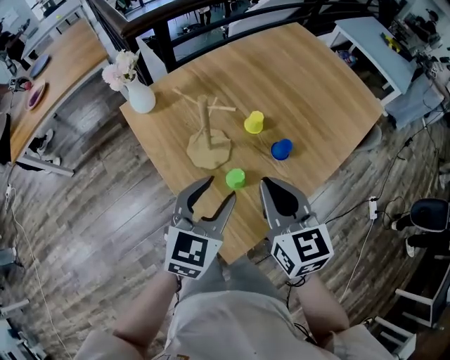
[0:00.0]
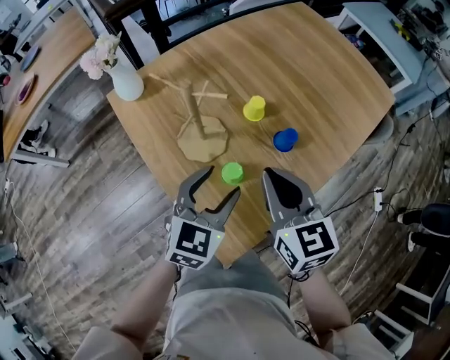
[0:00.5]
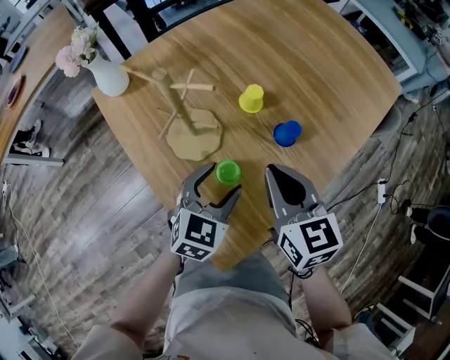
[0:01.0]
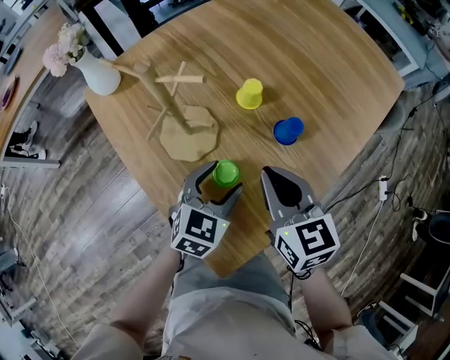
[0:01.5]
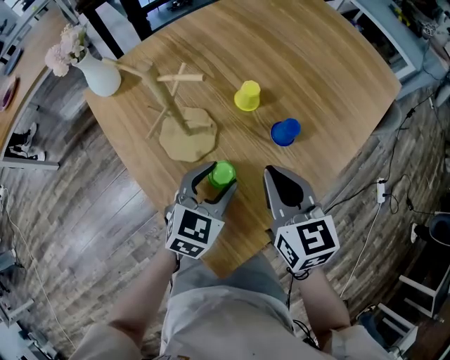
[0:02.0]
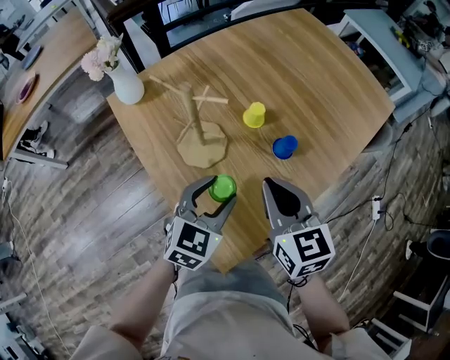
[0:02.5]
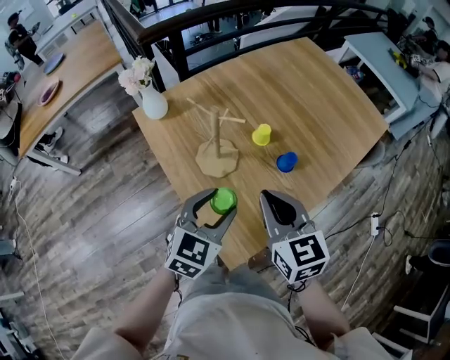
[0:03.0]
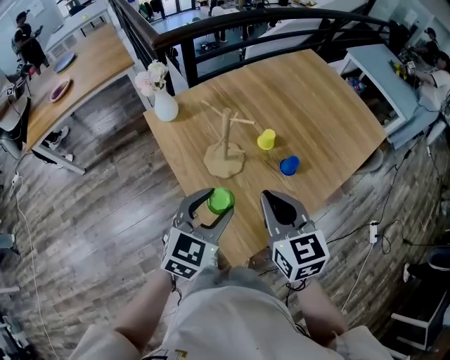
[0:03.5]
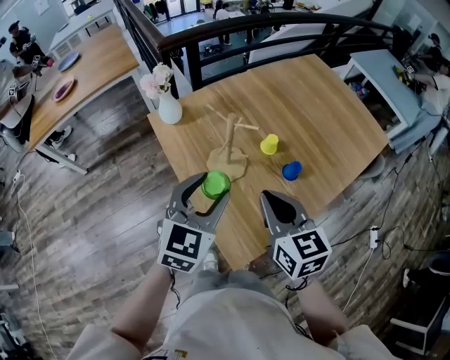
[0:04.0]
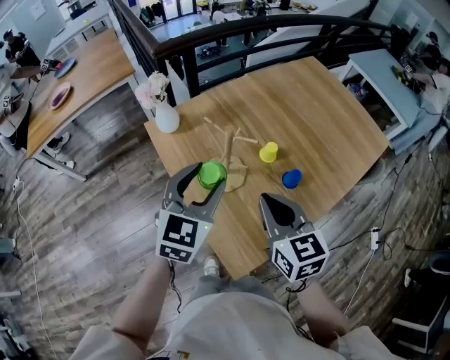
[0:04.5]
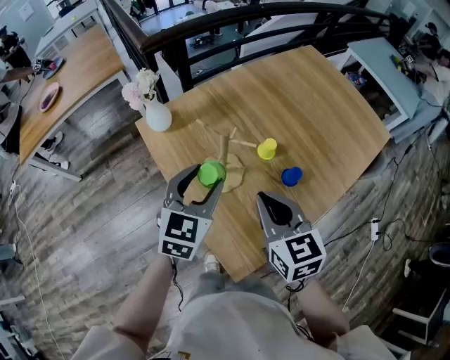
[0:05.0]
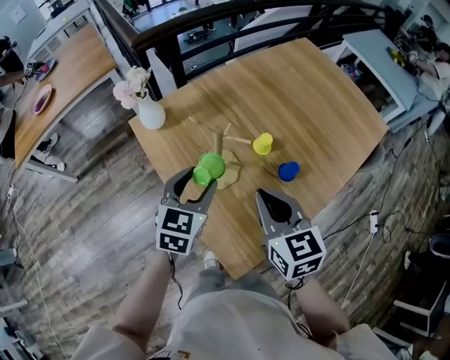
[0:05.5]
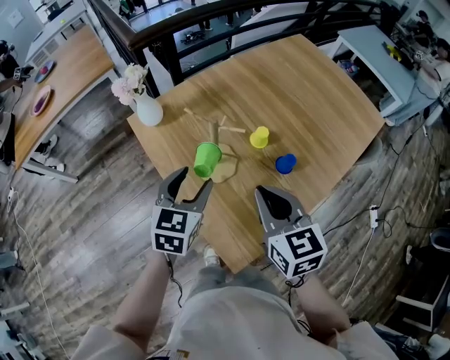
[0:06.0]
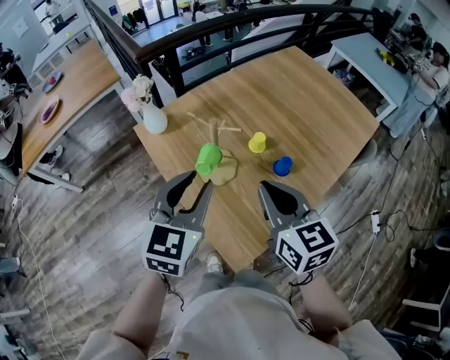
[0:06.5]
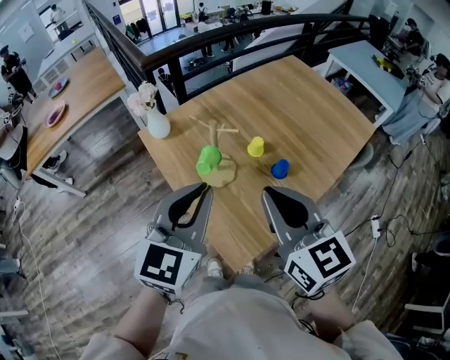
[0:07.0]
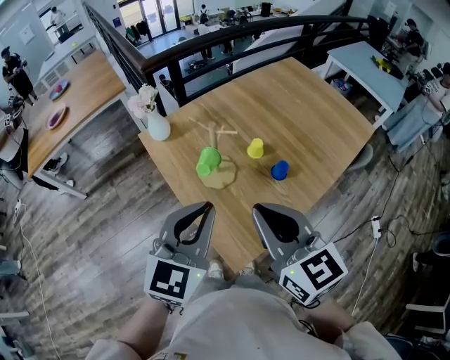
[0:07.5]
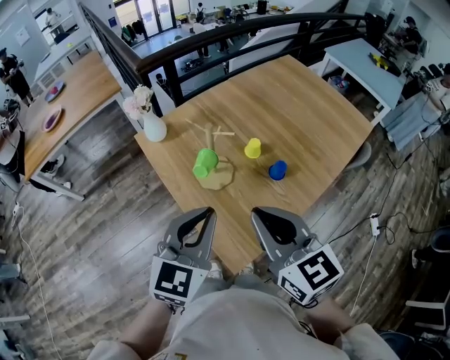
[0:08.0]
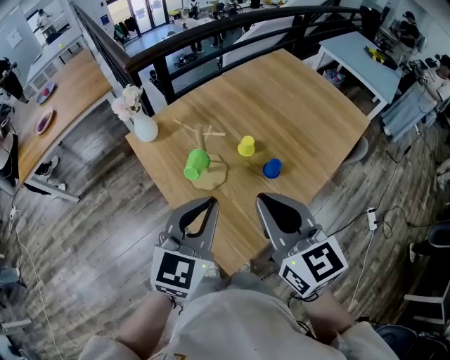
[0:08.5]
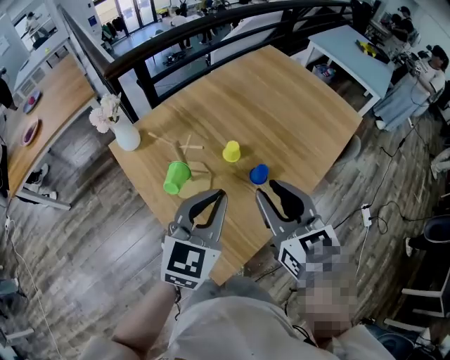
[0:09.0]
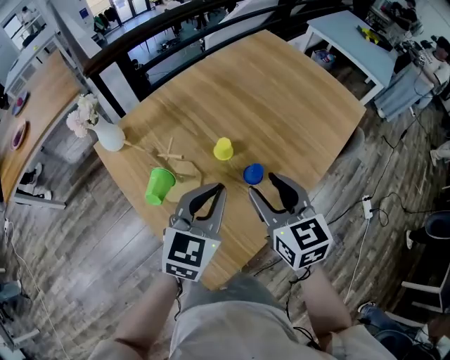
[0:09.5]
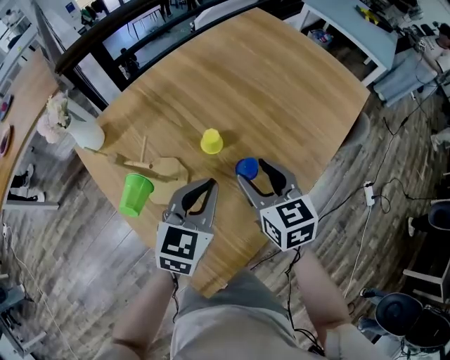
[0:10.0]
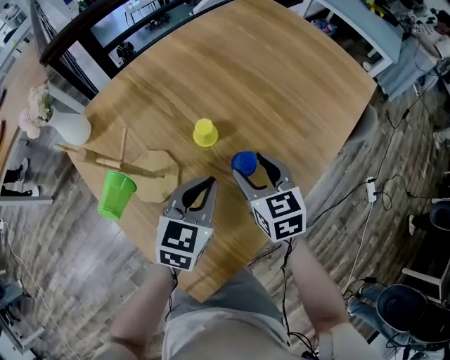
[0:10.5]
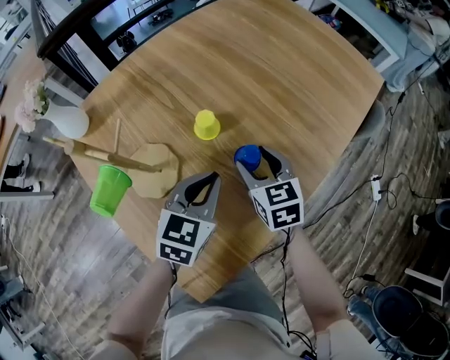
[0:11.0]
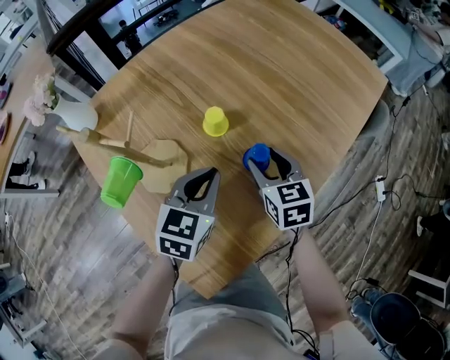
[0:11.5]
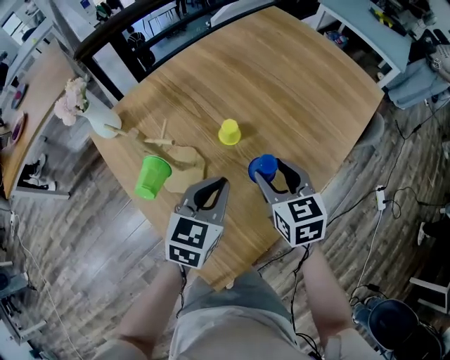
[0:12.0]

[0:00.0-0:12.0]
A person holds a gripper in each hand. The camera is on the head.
0:00.0 to 0:02.0: Both grippers travel together downward, roughly 20 cm.
0:02.0 to 0:04.0: The right gripper is displaced upward, to the left and backward by roughly 25 cm; the left gripper moves upward and to the left, about 30 cm.
0:04.0 to 0:06.0: The left gripper shifts approximately 10 cm downward and forward. Meanwhile the right gripper ends up roughly 5 cm from where it was.
0:06.0 to 0:08.0: The left gripper moves backward and upward, approximately 20 cm, and closes its fingers. Meanwhile the right gripper shifts roughly 15 cm upward and backward.
0:08.0 to 0:10.0: The two grippers go roughly 35 cm forward, downward and to the right. The right gripper opens up.
0:10.0 to 0:12.0: The left gripper reaches some 10 cm downward, then returns; the right gripper travels downward and back again, about 15 cm each way.

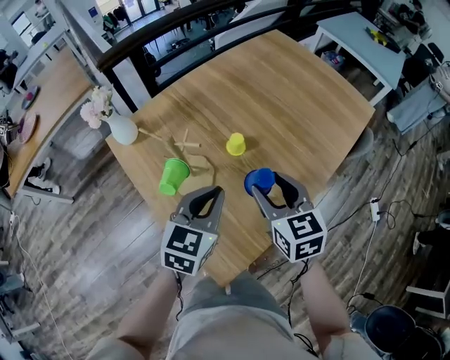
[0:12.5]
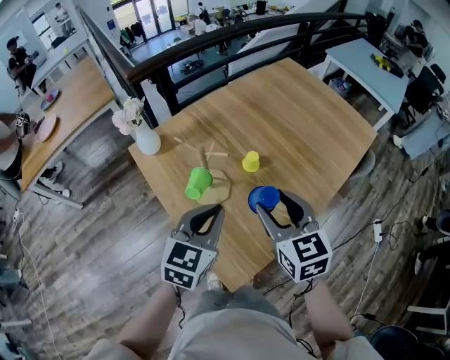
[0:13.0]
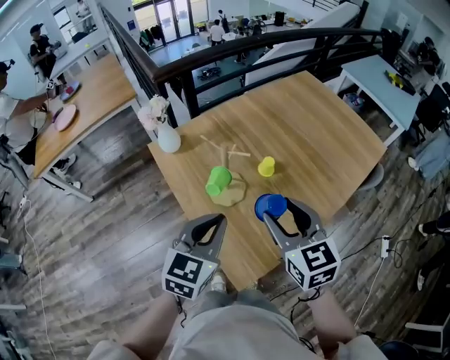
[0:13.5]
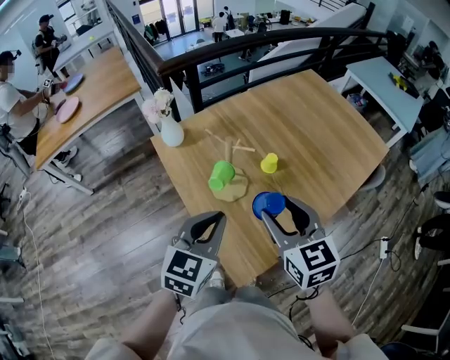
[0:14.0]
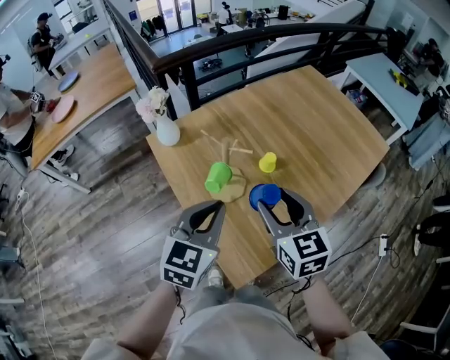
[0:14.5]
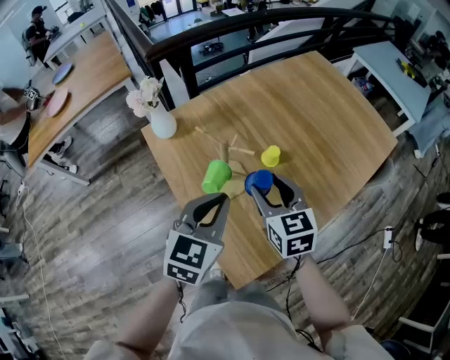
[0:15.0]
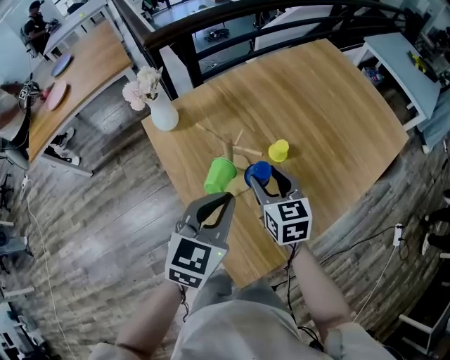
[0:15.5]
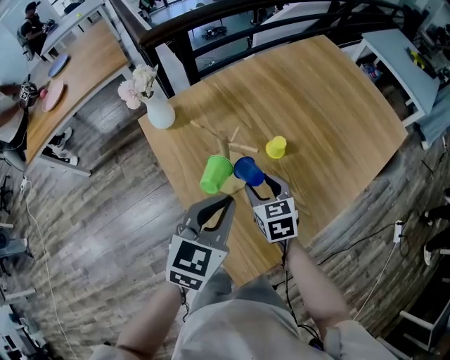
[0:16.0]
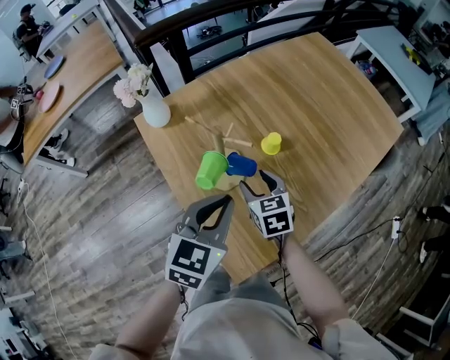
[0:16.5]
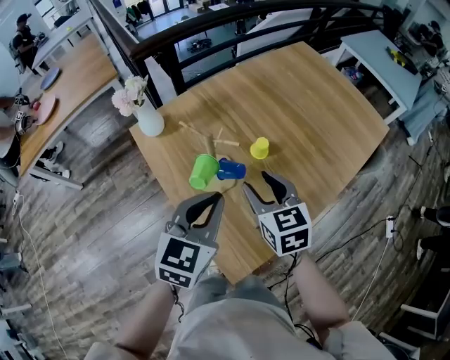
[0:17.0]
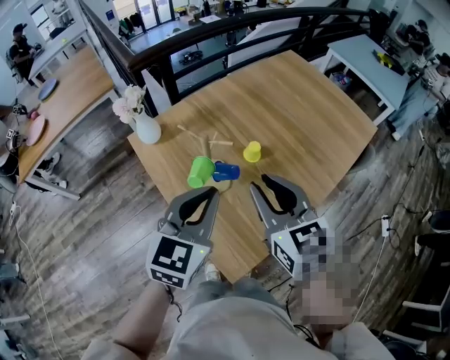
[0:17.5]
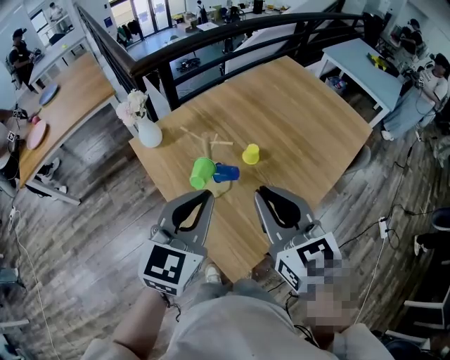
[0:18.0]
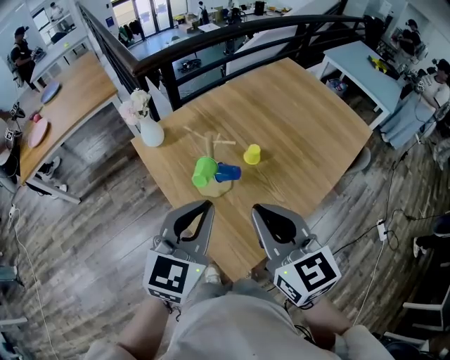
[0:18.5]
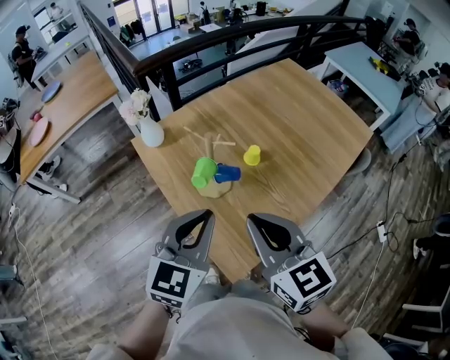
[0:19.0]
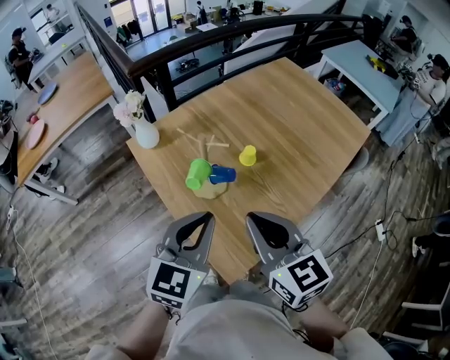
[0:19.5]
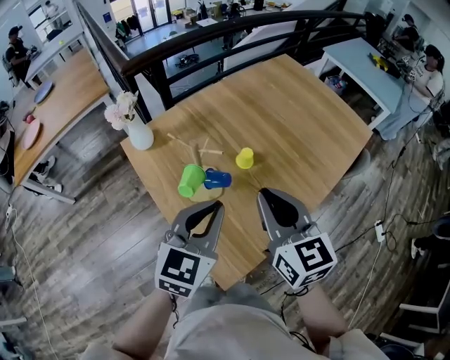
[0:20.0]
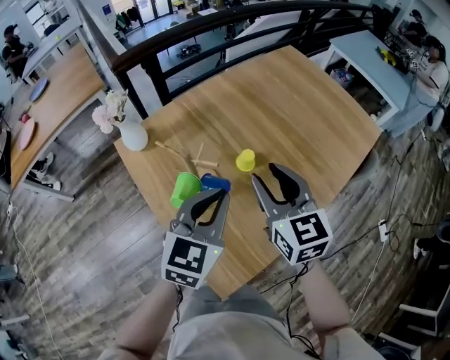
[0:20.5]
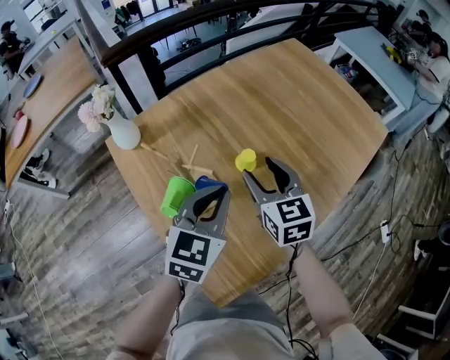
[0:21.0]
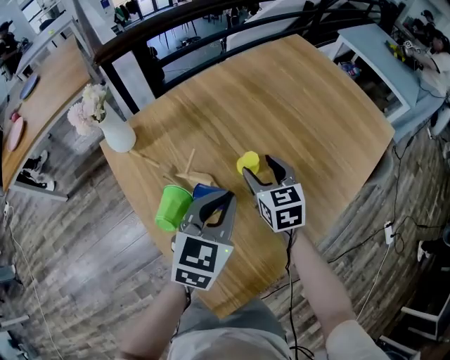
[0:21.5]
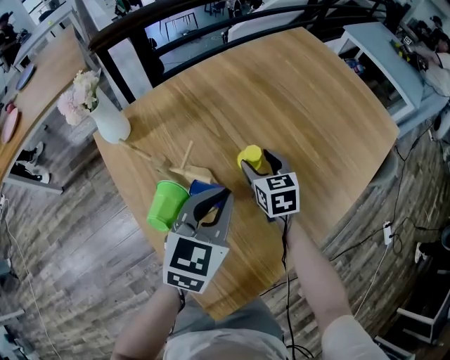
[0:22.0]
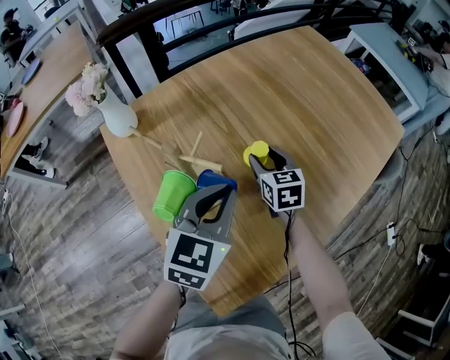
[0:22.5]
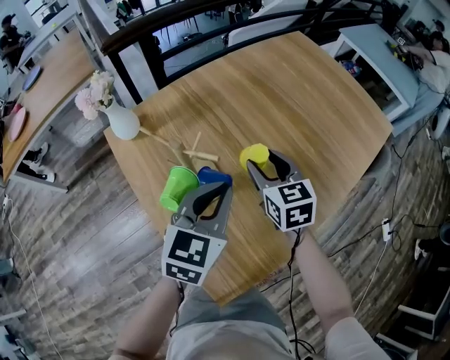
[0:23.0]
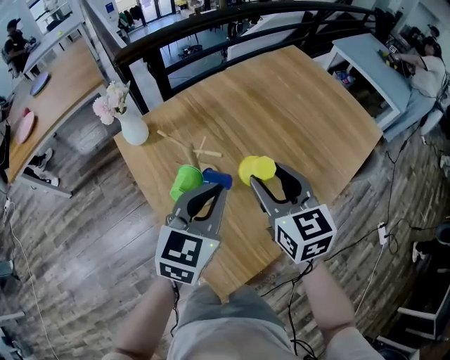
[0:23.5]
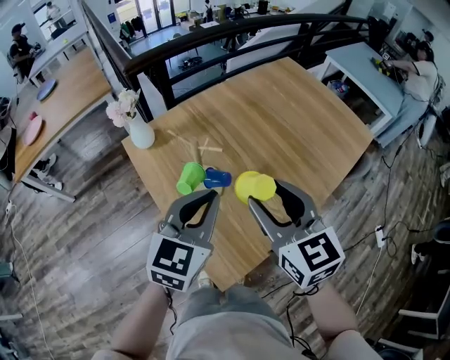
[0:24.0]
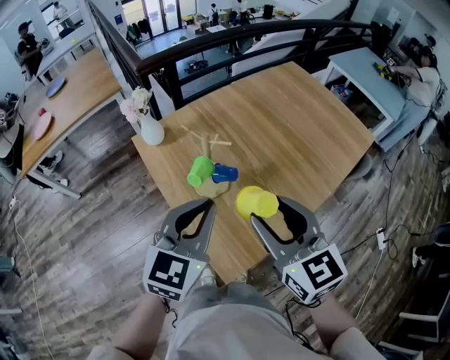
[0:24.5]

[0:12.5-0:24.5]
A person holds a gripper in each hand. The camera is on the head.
0:12.5 to 0:14.5: Both grippers move to the left, upward and backward, some 15 cm.
0:14.5 to 0:16.5: The left gripper is displaced downward by some 5 cm. Meanwhile the right gripper heads downward and forward, covering some 20 cm.
0:16.5 to 0:18.5: The right gripper travels upward and backward by roughly 30 cm, changes its angle by approximately 30 degrees, and closes up. Meanwhile the left gripper shifts about 15 cm upward and backward.
0:18.5 to 0:20.5: The grippers both shift forward, downward and to the right by roughly 20 cm. The right gripper opens up.
0:20.5 to 0:22.5: The right gripper shifts about 30 cm downward and forward; the left gripper heads downward and forward, covering roughly 15 cm.
0:22.5 to 0:24.5: The right gripper goes about 50 cm upward and backward, and rotates roughly 20 degrees. Meanwhile the left gripper moves upward and backward, roughly 30 cm.

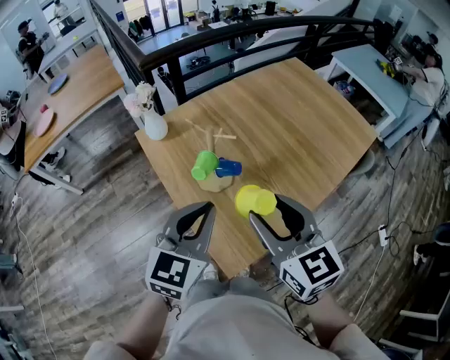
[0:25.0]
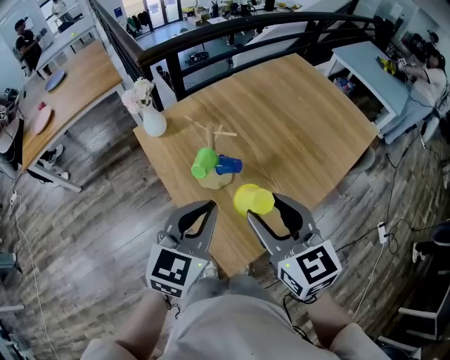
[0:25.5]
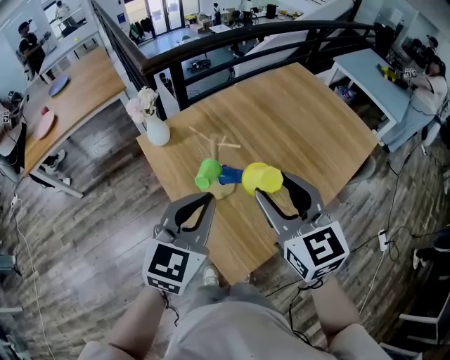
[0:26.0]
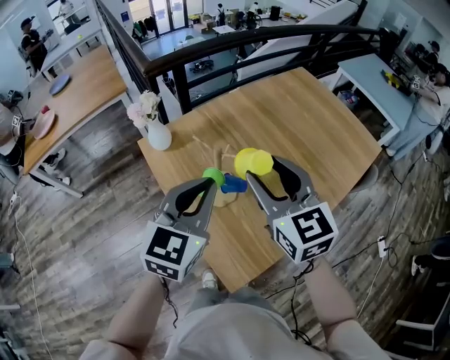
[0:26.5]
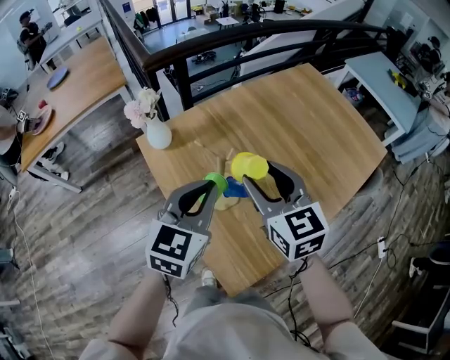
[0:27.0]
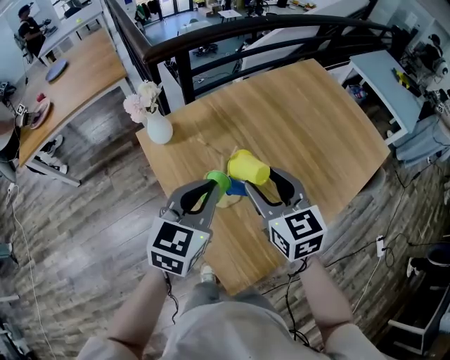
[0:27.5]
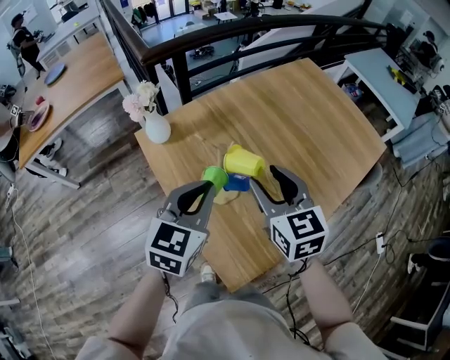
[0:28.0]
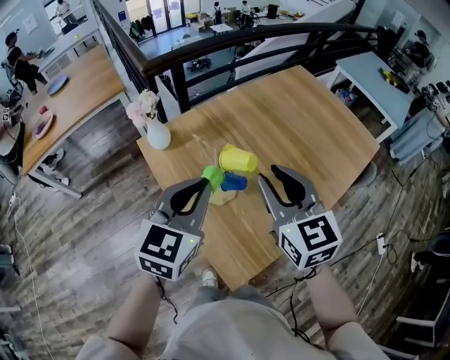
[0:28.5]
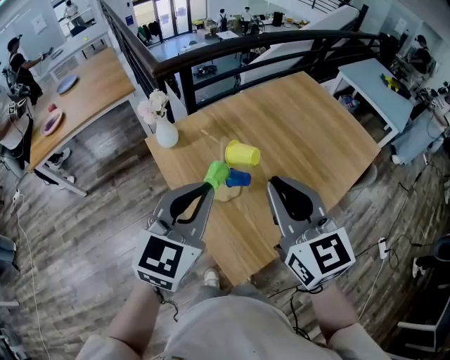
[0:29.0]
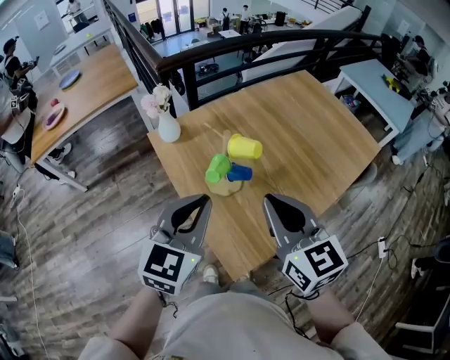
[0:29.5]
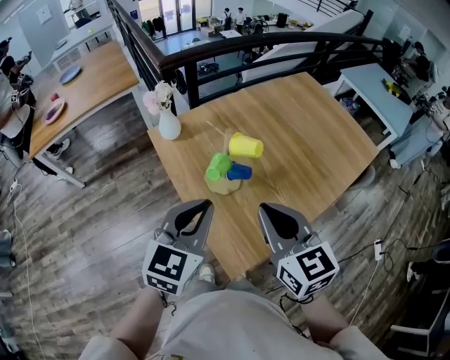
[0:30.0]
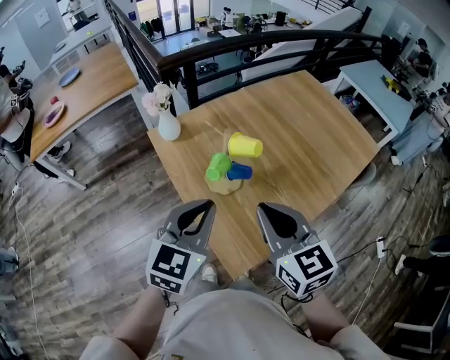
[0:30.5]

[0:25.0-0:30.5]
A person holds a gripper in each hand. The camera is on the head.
0:25.0 to 0:27.0: Both grippers travel together forward, about 15 cm.
0:27.0 to 0:28.5: The right gripper heads backward, covering about 5 cm, and closes. Meanwhile the left gripper shifts by roughly 5 cm.
0:28.5 to 0:30.5: The two grippers go approximately 10 cm backward. The right gripper closes.
